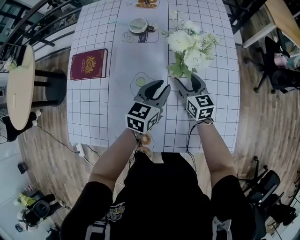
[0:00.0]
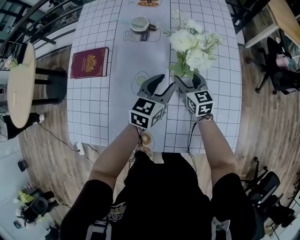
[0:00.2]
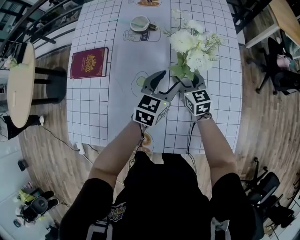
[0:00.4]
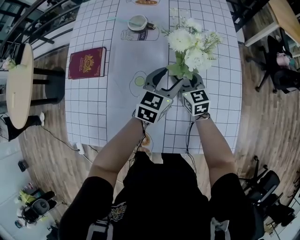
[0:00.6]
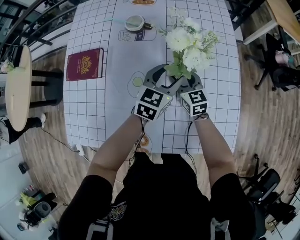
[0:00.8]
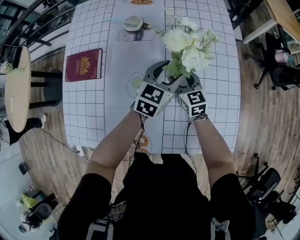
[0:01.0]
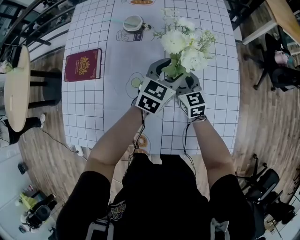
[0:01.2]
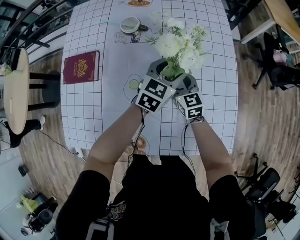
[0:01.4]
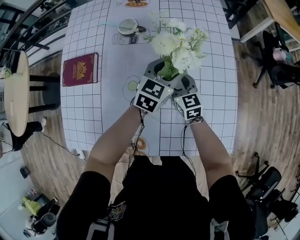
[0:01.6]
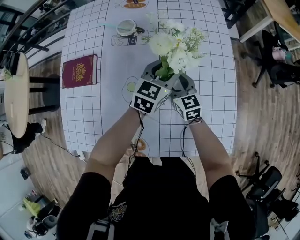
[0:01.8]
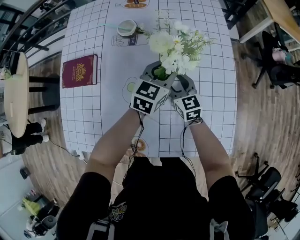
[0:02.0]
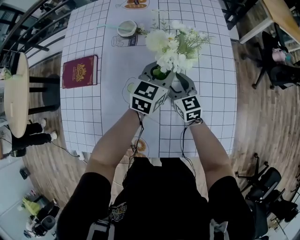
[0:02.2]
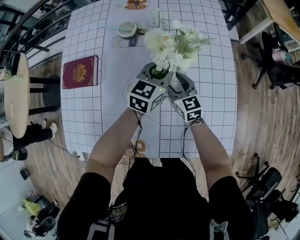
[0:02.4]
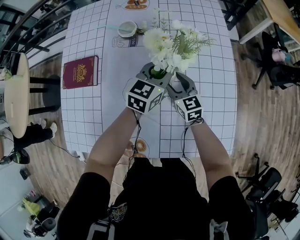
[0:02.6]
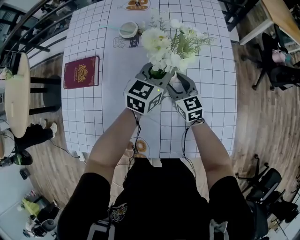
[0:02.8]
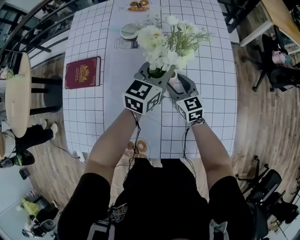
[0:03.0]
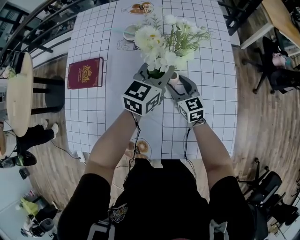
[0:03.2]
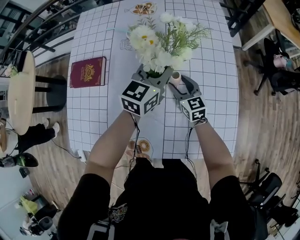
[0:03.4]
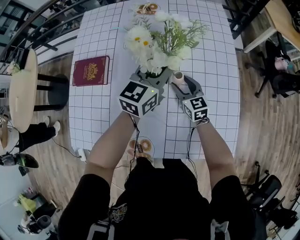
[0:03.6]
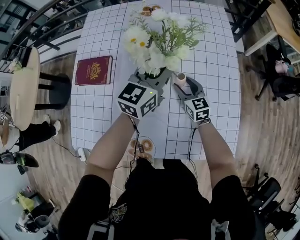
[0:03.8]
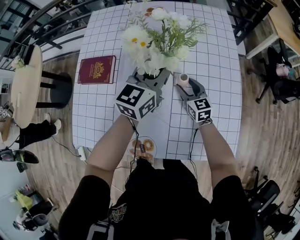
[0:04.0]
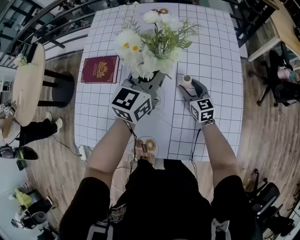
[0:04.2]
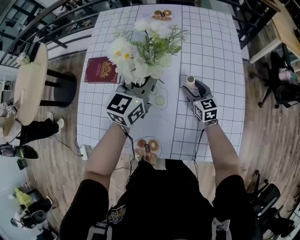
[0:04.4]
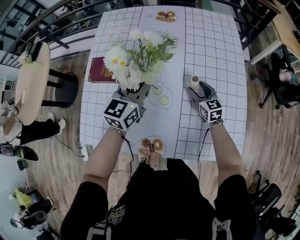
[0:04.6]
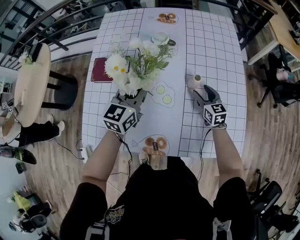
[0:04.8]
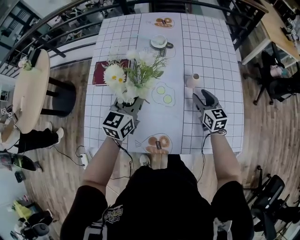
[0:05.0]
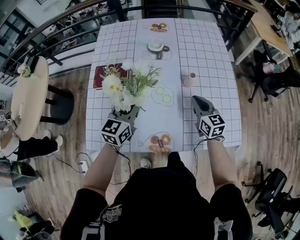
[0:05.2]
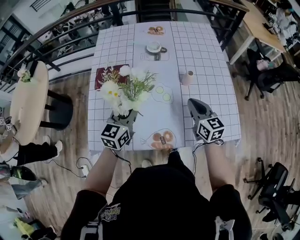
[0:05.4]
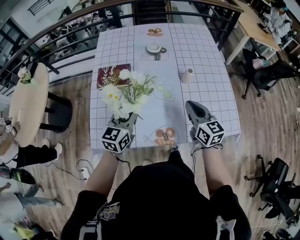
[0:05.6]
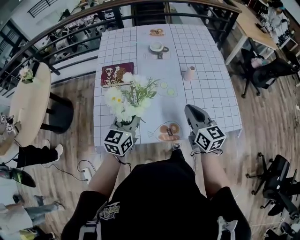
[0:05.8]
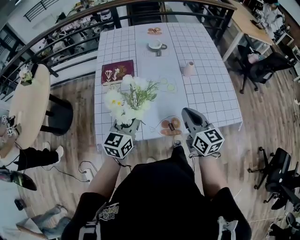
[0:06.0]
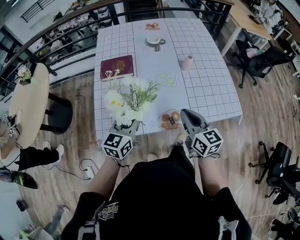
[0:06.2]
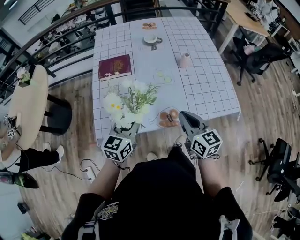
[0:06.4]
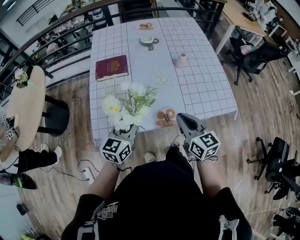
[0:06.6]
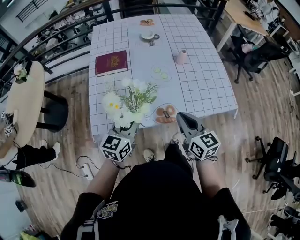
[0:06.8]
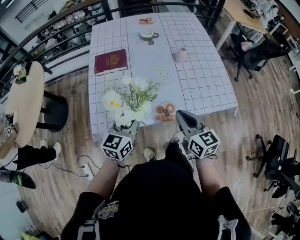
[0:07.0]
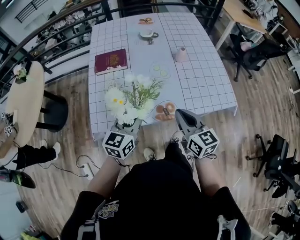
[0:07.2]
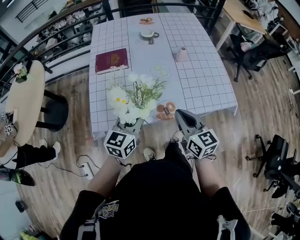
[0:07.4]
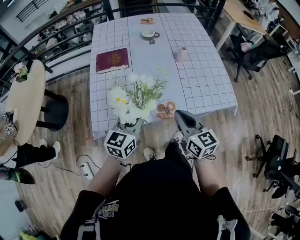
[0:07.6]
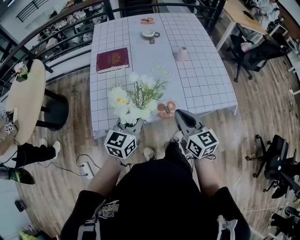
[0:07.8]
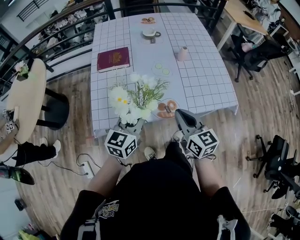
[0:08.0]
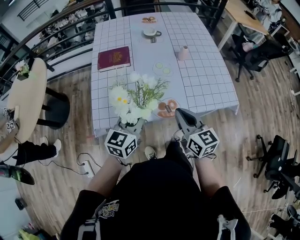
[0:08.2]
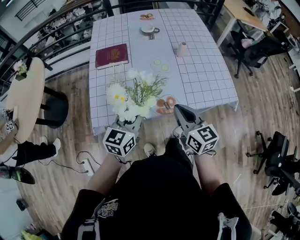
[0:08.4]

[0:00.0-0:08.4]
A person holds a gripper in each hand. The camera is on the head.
0:00.0 to 0:01.4: The left gripper is displaced forward and to the right by approximately 10 cm, and opens.
0:01.4 to 0:02.8: The left gripper closes up.
0:02.8 to 0:04.2: The left gripper moves upward and to the left, roughly 15 cm.
0:04.2 to 0:05.6: The right gripper is displaced backward and upward by about 30 cm, and closes its fingers. Meanwhile the left gripper moves backward and to the left, about 30 cm.
0:05.6 to 0:07.0: Both grippers move backward, some 15 cm.
0:07.0 to 0:08.4: There are only small adjustments of the grippers.

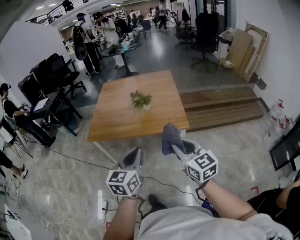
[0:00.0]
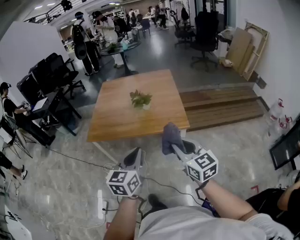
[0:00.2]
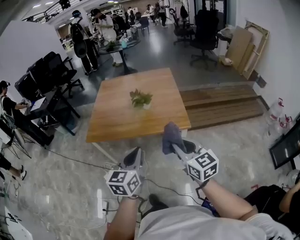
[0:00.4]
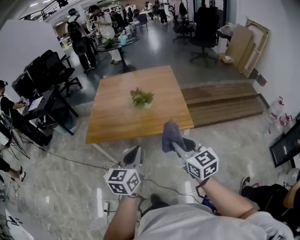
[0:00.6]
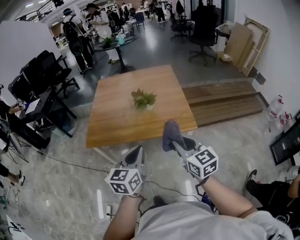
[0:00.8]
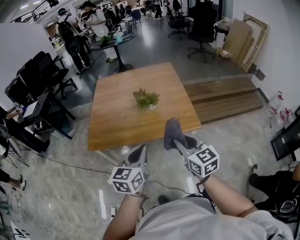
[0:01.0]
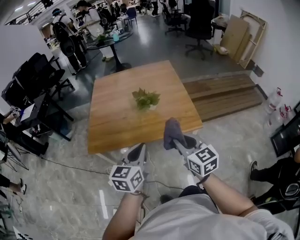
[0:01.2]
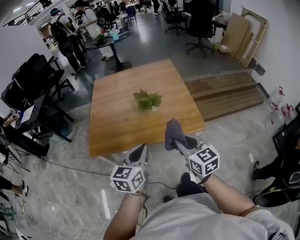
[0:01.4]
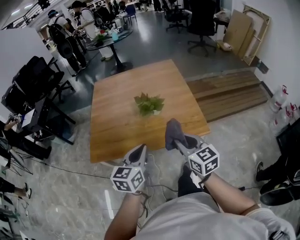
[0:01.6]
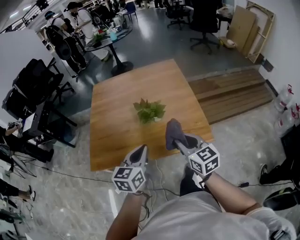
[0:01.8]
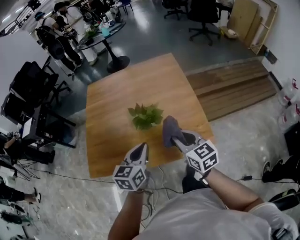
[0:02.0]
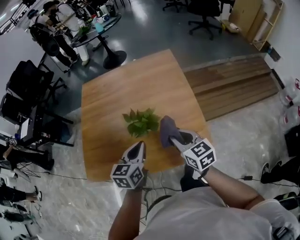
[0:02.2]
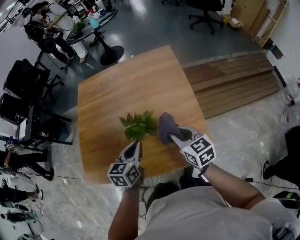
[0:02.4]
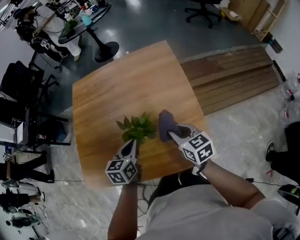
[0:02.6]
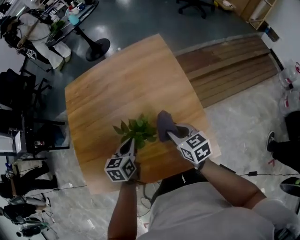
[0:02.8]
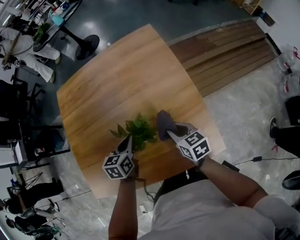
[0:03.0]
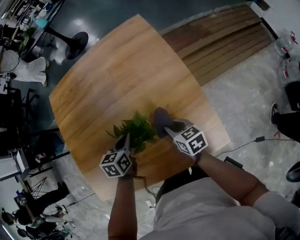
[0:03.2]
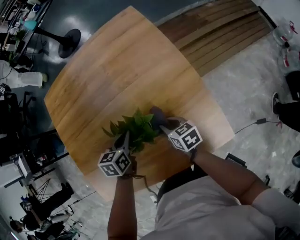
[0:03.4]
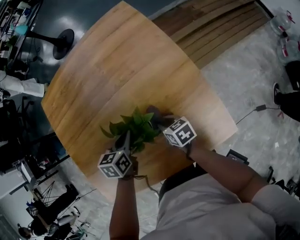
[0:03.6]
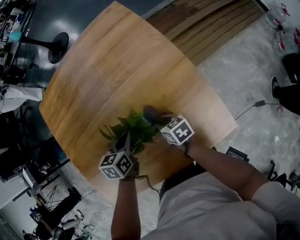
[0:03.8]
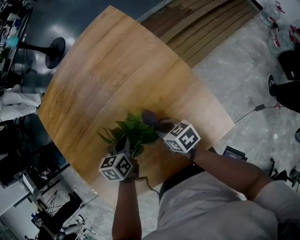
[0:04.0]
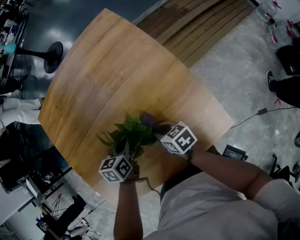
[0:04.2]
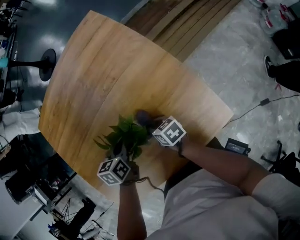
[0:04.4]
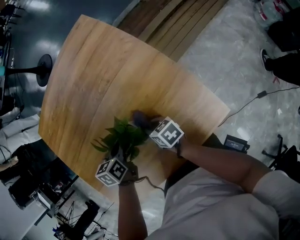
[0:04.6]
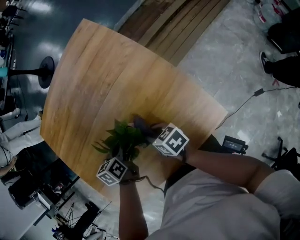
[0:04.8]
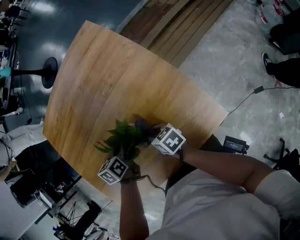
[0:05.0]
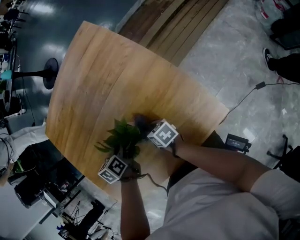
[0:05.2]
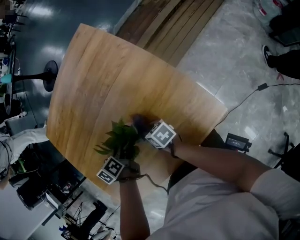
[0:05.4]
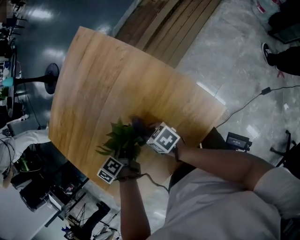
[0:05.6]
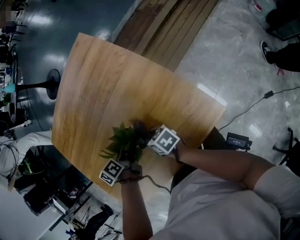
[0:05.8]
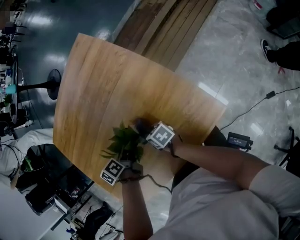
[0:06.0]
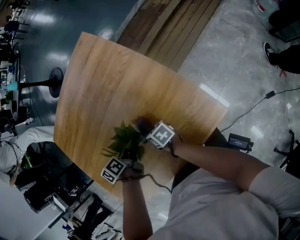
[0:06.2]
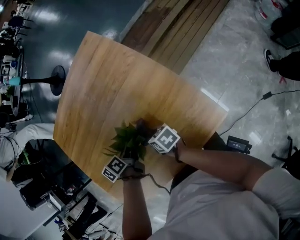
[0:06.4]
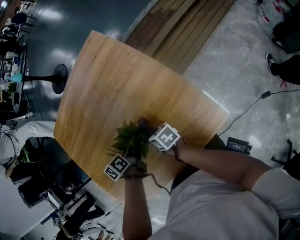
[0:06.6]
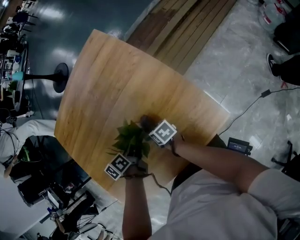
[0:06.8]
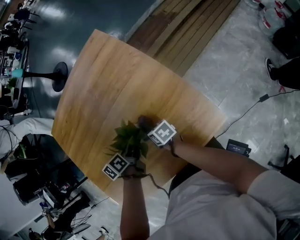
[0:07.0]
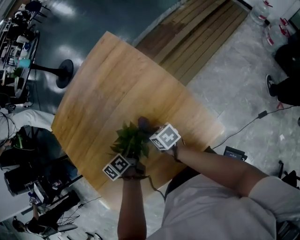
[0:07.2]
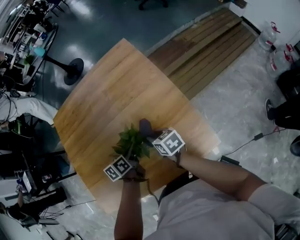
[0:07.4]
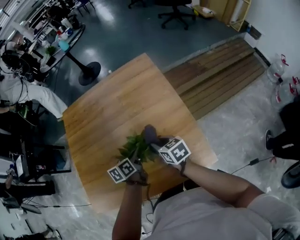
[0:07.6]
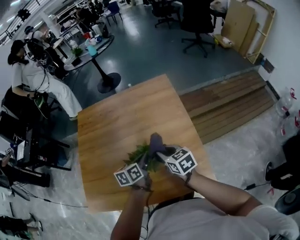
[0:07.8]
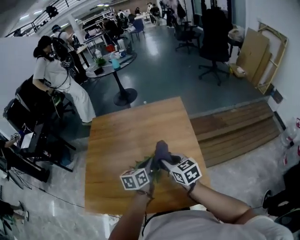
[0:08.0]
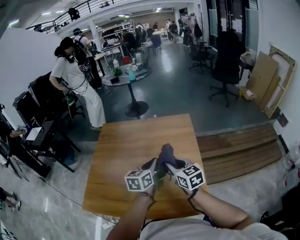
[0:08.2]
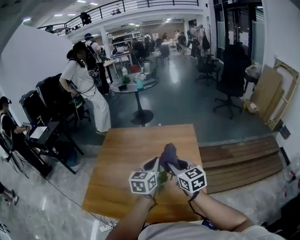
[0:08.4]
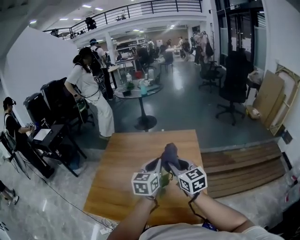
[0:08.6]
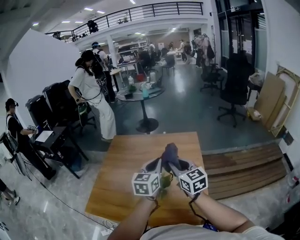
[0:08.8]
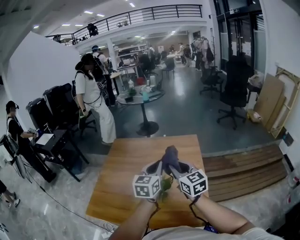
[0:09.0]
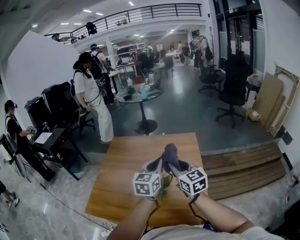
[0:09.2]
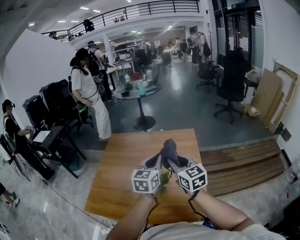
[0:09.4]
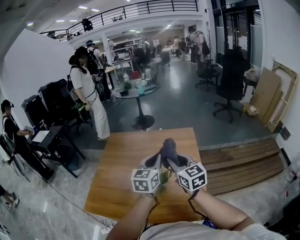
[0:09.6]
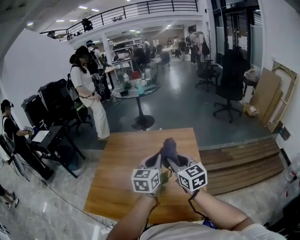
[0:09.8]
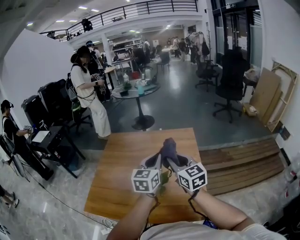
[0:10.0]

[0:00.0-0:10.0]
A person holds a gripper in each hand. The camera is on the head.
0:00.0 to 0:01.4: Both grippers travel together forward and to the left, some 25 cm.
0:01.4 to 0:02.8: Both grippers are carried forward, about 50 cm. The two grippers go roughly 20 cm downward. The right gripper rotates about 20 degrees; the left gripper swivels some 20 degrees.
0:02.8 to 0:04.2: The left gripper shifts about 15 cm downward and forward, and swivels approximately 20 degrees, while the right gripper goes approximately 15 cm downward, and swivels approximately 30 degrees.
0:04.2 to 0:05.8: The right gripper moves up and down over approximately 5 cm, changing direction 3 times; the left gripper swivels about 30 degrees.
0:05.8 to 0:07.2: The right gripper goes up and down, some 5 cm each way, reversing 3 times.
0:07.2 to 0:08.6: Both grippers move upward, about 40 cm. The right gripper rotates around the line of its fingers by roughly 50 degrees, counterclockwise from behind. Meanwhile the left gripper tilts its fingers about 40 degrees upward.
0:08.6 to 0:10.0: The grippers make only small movements.

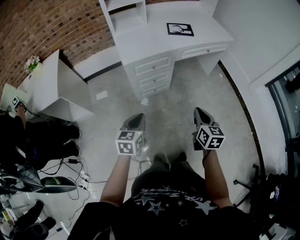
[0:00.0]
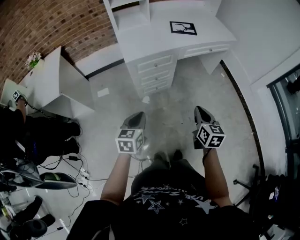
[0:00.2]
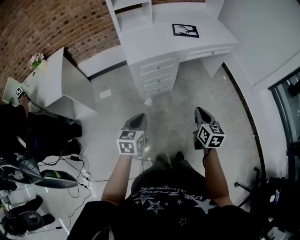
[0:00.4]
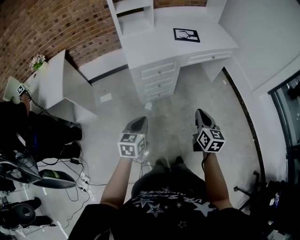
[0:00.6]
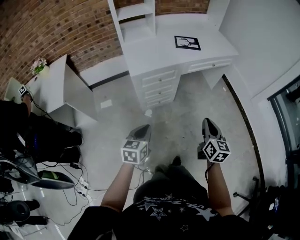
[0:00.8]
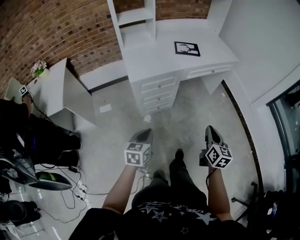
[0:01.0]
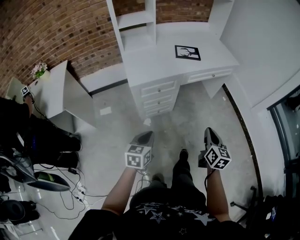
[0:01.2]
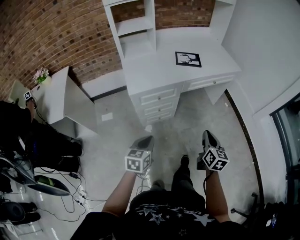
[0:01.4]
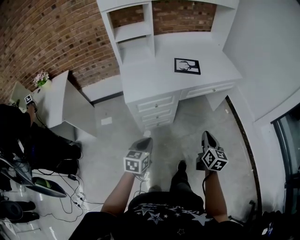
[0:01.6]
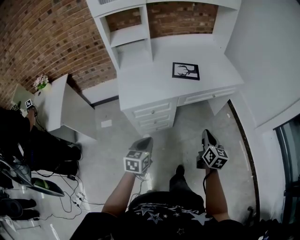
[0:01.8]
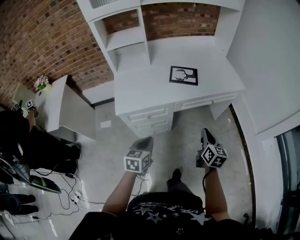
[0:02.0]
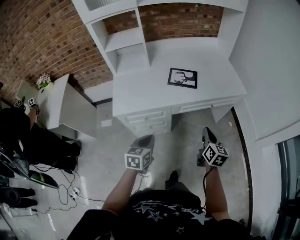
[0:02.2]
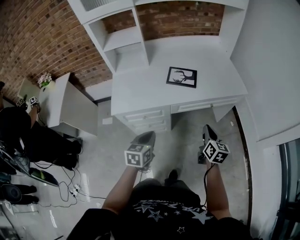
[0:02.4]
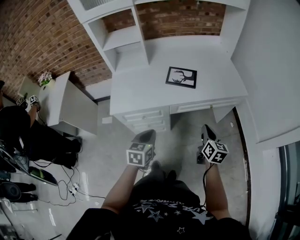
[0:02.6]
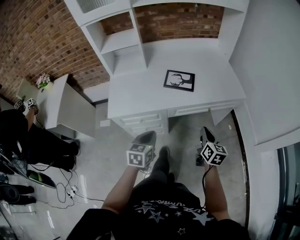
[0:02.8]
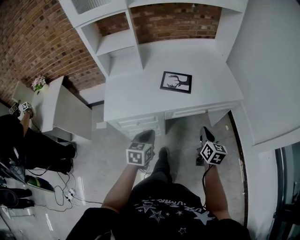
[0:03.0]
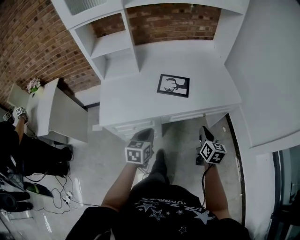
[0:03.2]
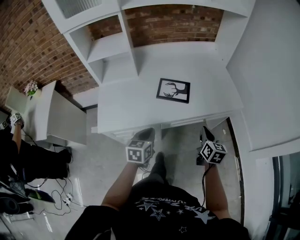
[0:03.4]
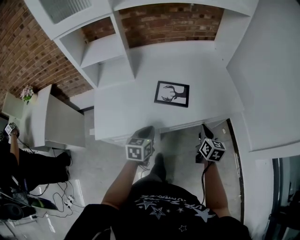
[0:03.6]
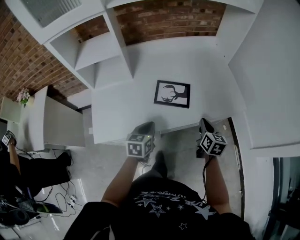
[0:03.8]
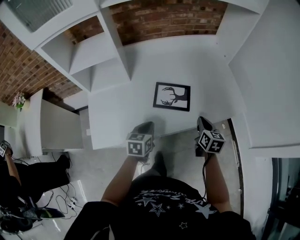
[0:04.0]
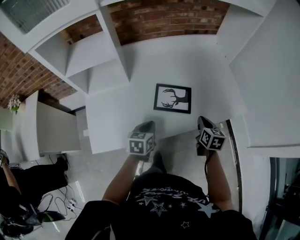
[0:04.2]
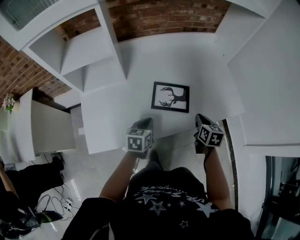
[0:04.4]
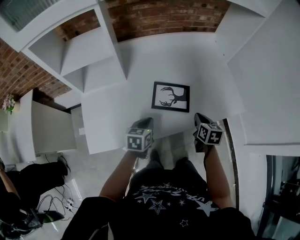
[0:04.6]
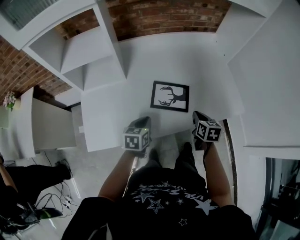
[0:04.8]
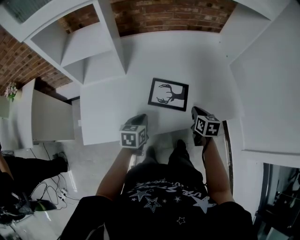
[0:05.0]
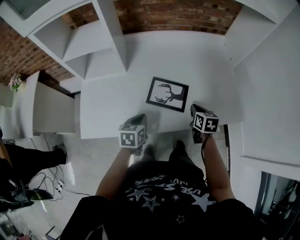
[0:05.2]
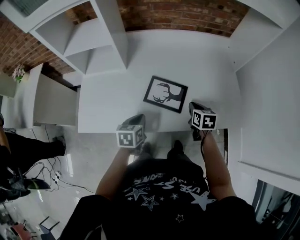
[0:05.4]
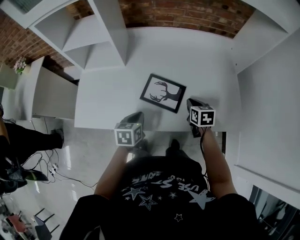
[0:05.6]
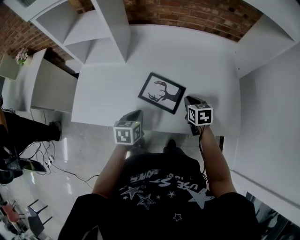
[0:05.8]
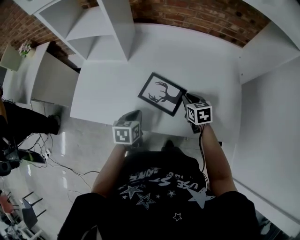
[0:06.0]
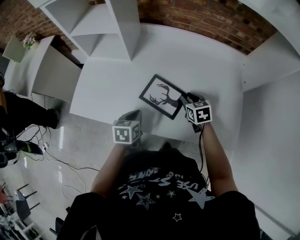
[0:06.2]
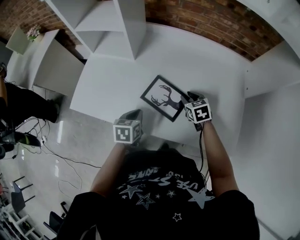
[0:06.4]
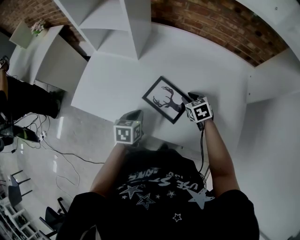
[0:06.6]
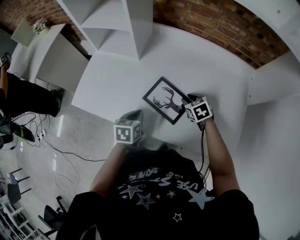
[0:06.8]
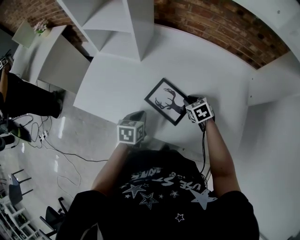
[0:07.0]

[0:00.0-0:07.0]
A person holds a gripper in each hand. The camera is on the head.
0:00.0 to 0:01.4: The two grippers go approximately 10 cm forward.
0:01.4 to 0:02.8: Both grippers move forward and to the right, about 30 cm.
0:02.8 to 0:04.2: The grippers both shift forward by approximately 25 cm.
0:04.2 to 0:05.6: The right gripper heads forward, covering approximately 10 cm, and swivels about 30 degrees.
0:05.6 to 0:07.0: The right gripper is displaced forward by about 10 cm, and turns by some 40 degrees.
